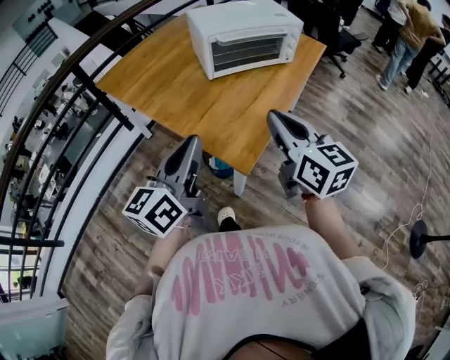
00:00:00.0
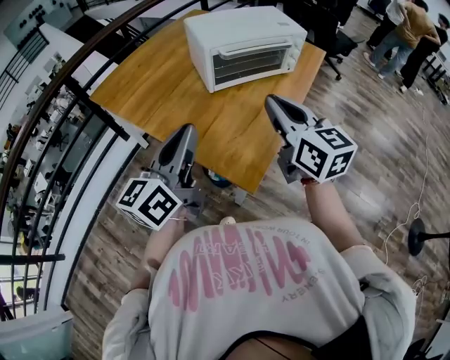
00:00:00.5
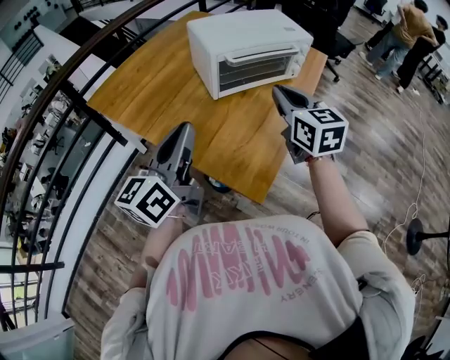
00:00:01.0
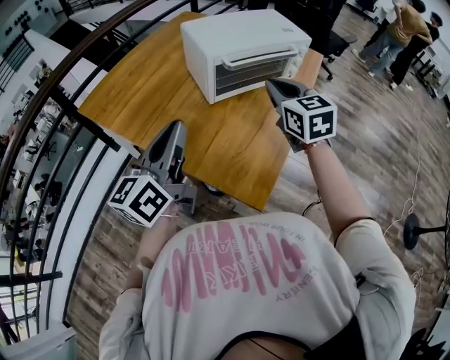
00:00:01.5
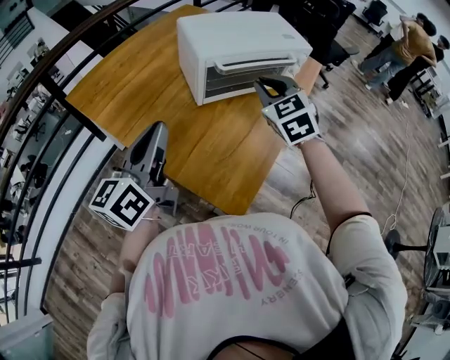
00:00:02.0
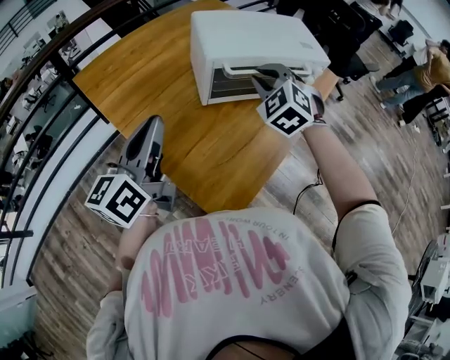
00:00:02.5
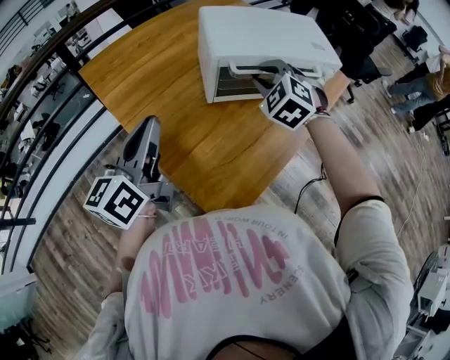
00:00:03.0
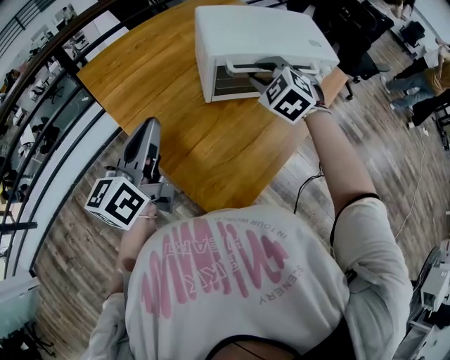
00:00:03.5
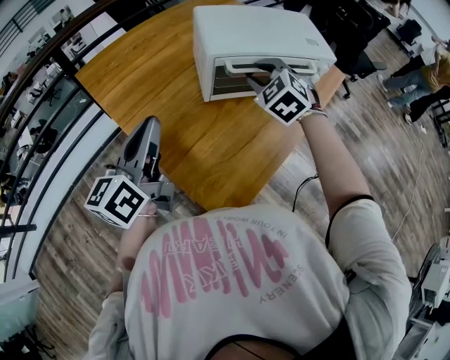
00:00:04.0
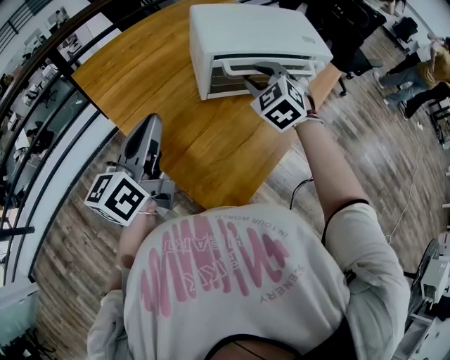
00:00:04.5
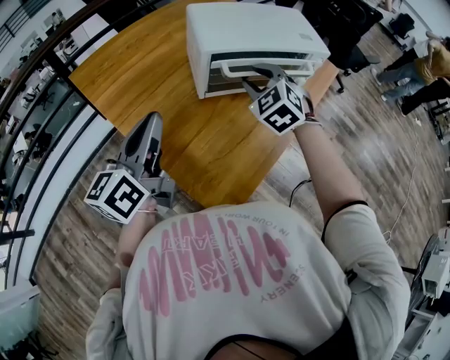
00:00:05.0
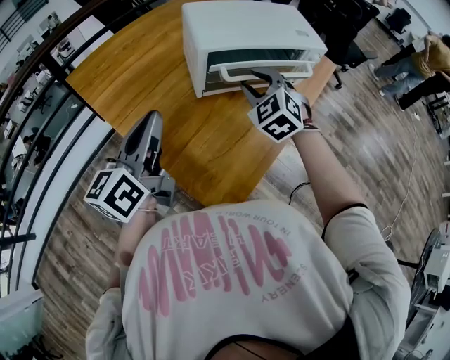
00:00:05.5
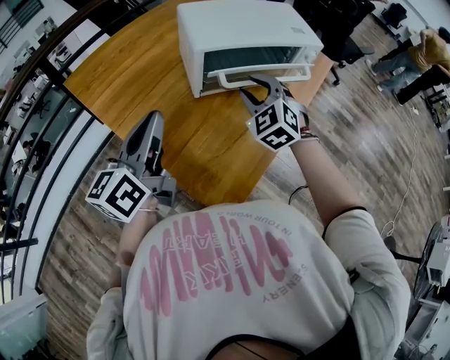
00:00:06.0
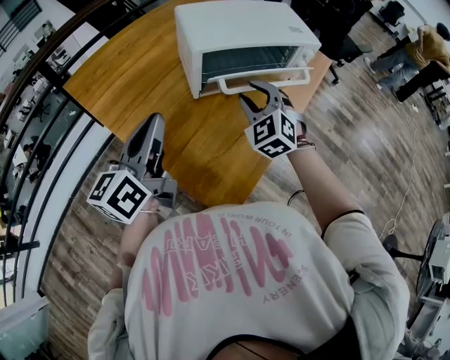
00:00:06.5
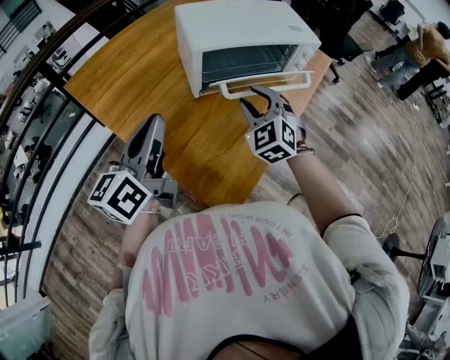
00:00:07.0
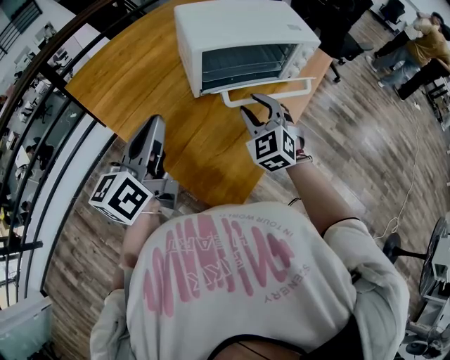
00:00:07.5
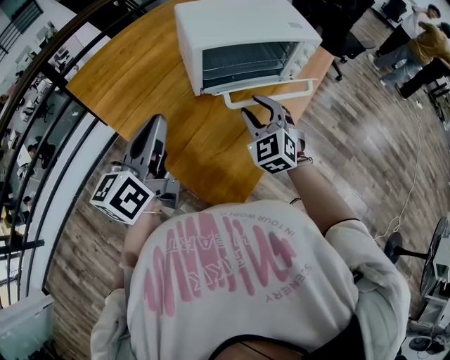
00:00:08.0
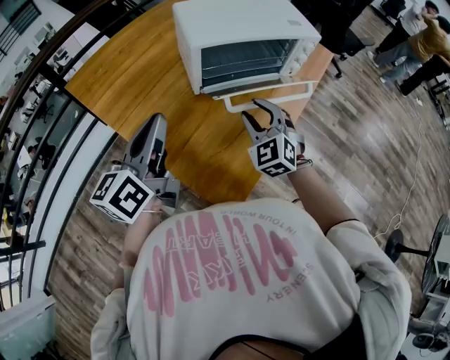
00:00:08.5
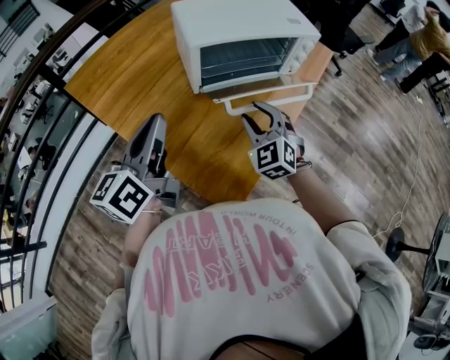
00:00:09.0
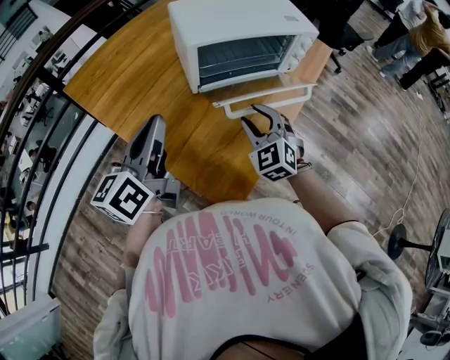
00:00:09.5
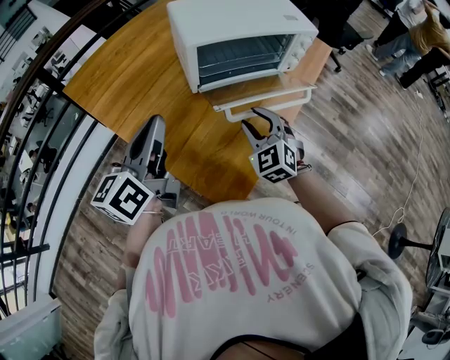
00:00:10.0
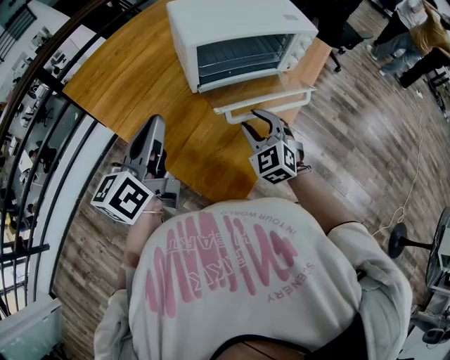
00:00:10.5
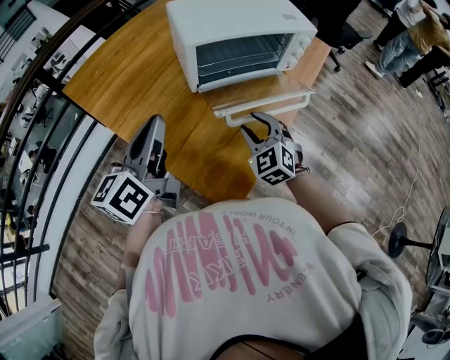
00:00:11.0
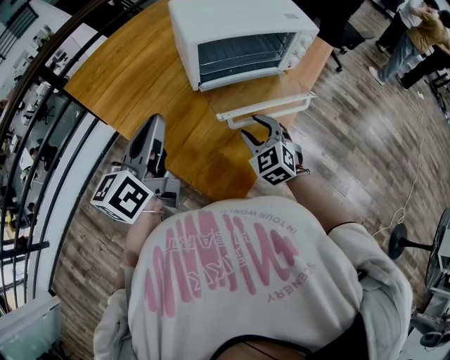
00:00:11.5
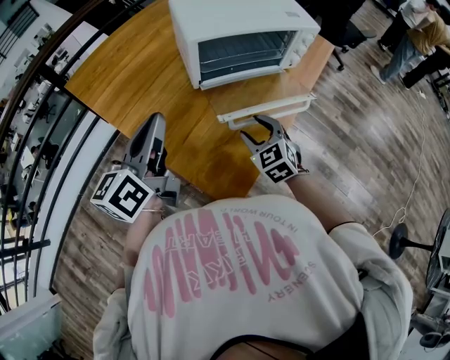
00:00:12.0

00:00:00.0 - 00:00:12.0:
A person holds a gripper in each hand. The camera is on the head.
00:00:00.0 - 00:00:02.0: The left gripper travels forward and to the left by roughly 20 cm; the right gripper heads forward, covering some 25 cm, and twists some 40 degrees counterclockwise, seen from behind.
00:00:02.0 - 00:00:04.0: The right gripper travels forward by approximately 10 cm, and rotates some 20 degrees.
00:00:04.0 - 00:00:06.0: The right gripper heads backward, covering roughly 5 cm.
00:00:06.0 - 00:00:08.0: The right gripper shifts by some 5 cm.
00:00:08.0 - 00:00:10.0: The right gripper shifts by some 5 cm.
00:00:10.0 - 00:00:12.0: The right gripper moves some 5 cm.

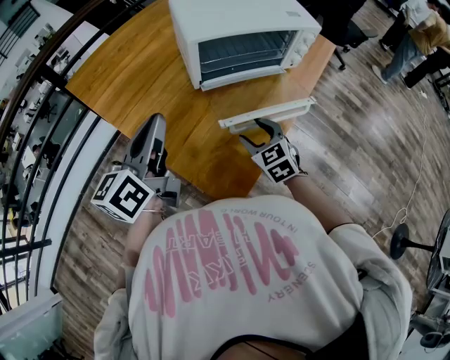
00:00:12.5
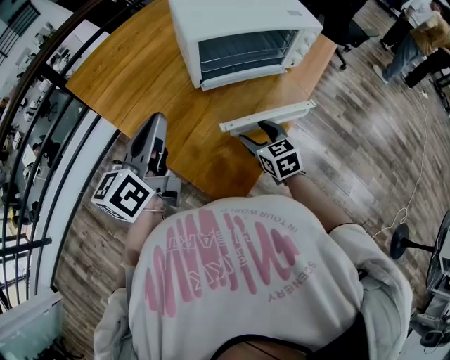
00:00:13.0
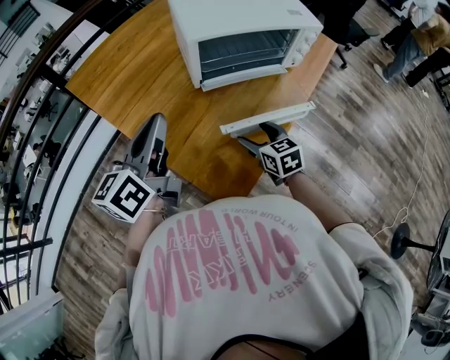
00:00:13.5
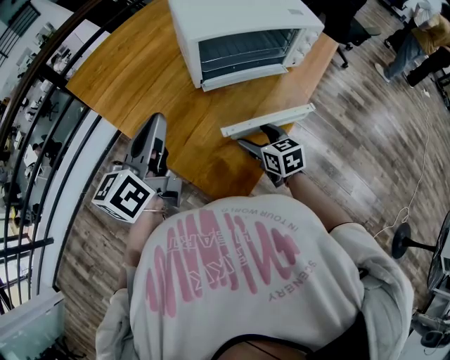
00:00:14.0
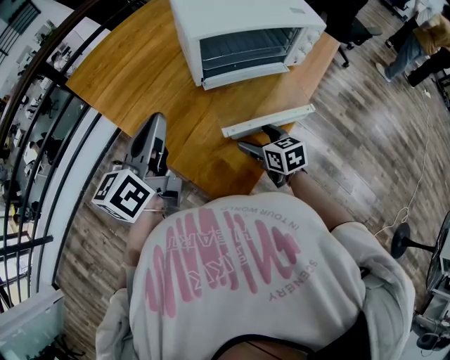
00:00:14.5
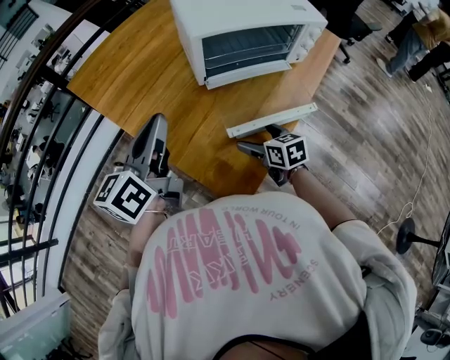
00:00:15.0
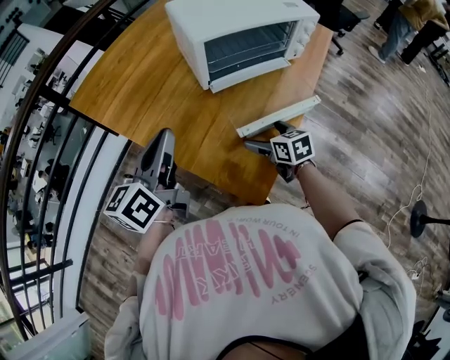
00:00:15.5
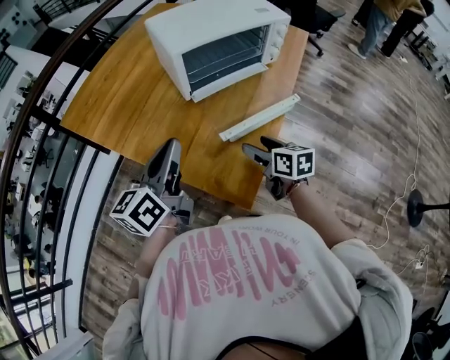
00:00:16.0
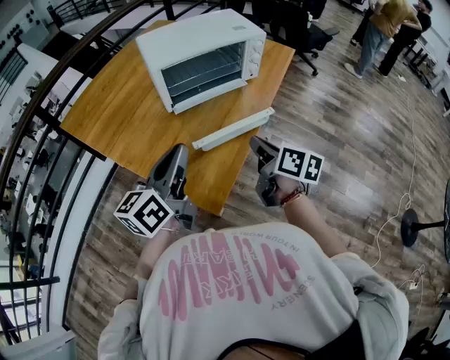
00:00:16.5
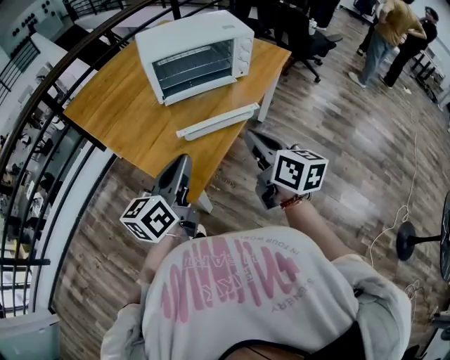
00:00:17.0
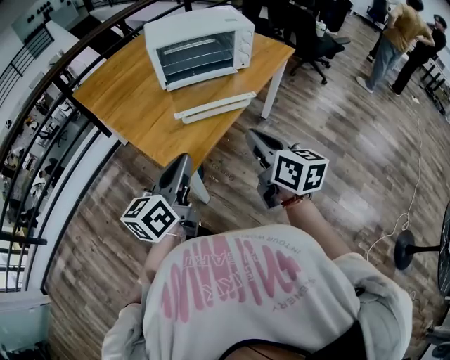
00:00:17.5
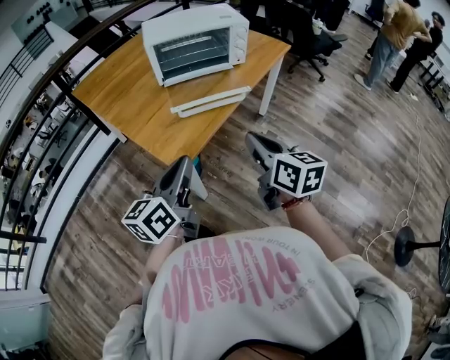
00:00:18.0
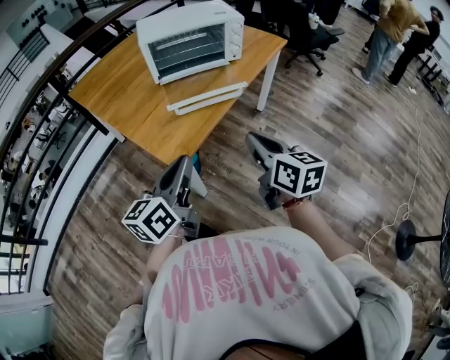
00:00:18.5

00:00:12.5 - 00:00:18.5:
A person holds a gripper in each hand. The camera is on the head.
00:00:12.5 - 00:00:14.5: The right gripper turns by some 30 degrees.
00:00:14.5 - 00:00:16.5: The left gripper heads to the right and backward, covering some 15 cm; the right gripper goes approximately 15 cm upward, to the right and backward, rotates approximately 40 degrees, and closes.
00:00:16.5 - 00:00:18.5: Both grippers move backward and to the right, approximately 20 cm. The right gripper swivels roughly 30 degrees.

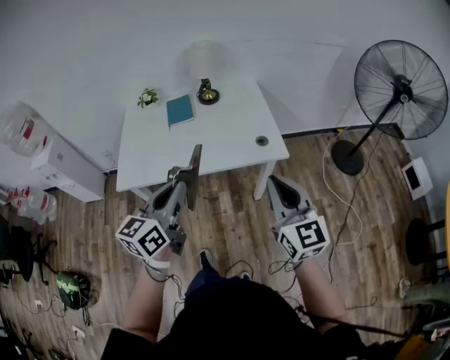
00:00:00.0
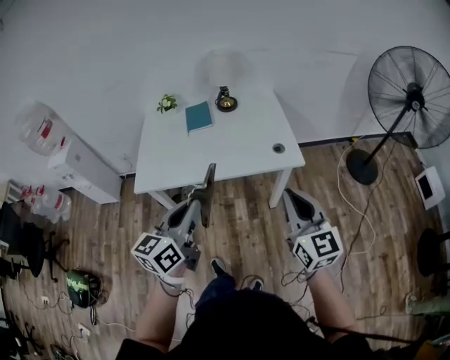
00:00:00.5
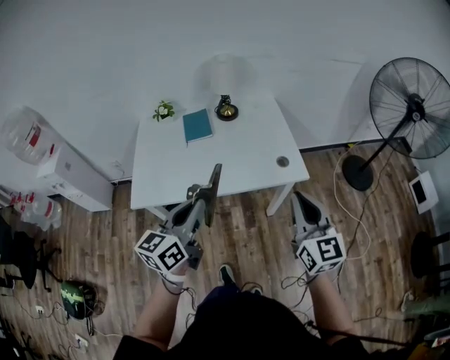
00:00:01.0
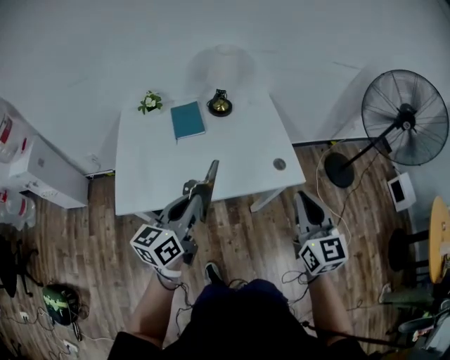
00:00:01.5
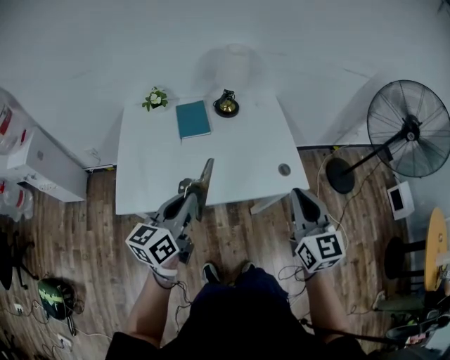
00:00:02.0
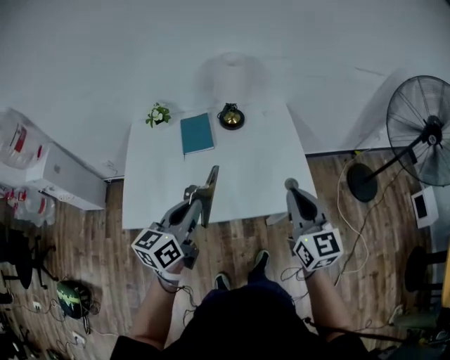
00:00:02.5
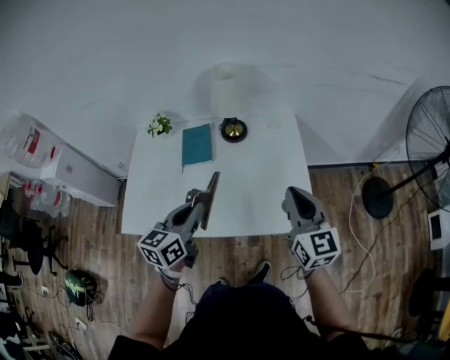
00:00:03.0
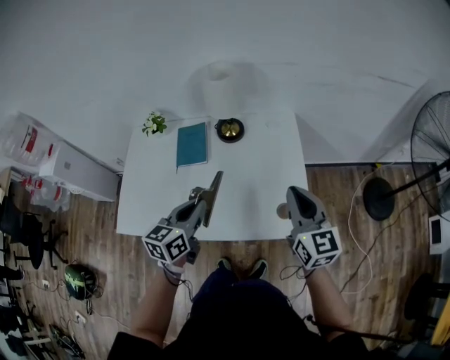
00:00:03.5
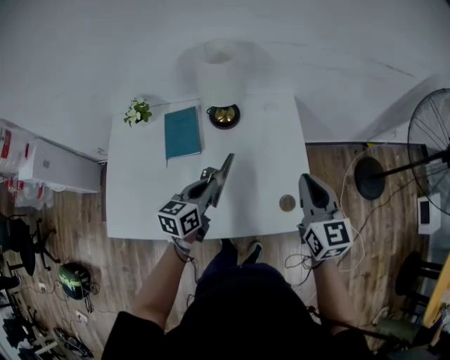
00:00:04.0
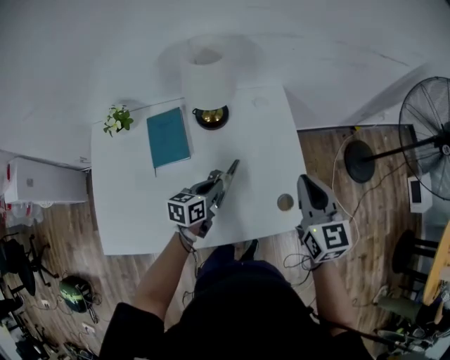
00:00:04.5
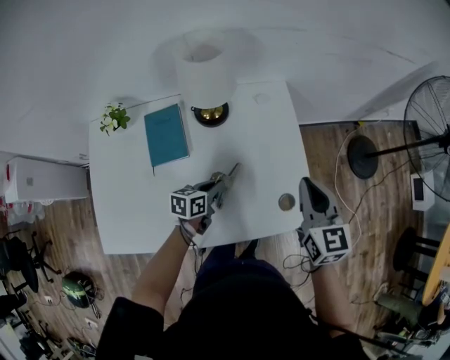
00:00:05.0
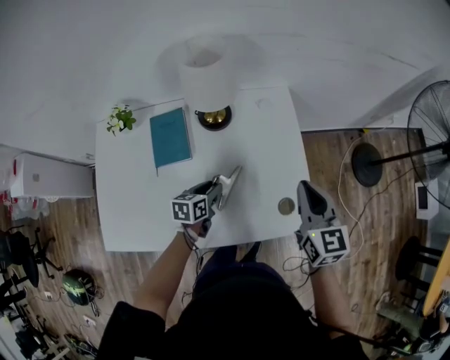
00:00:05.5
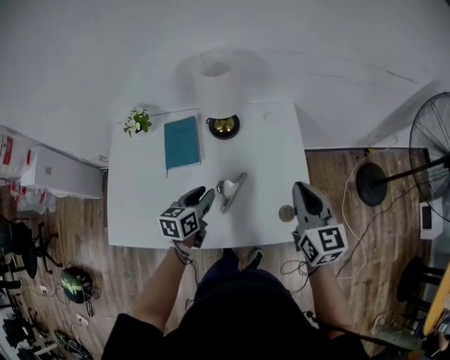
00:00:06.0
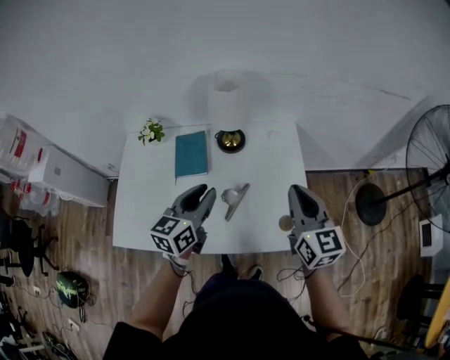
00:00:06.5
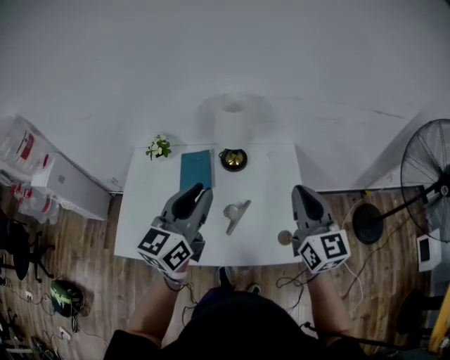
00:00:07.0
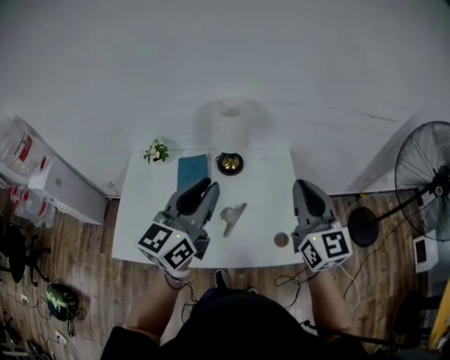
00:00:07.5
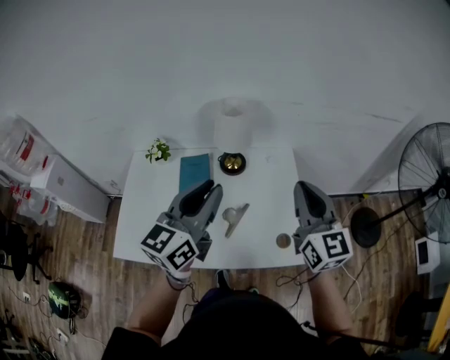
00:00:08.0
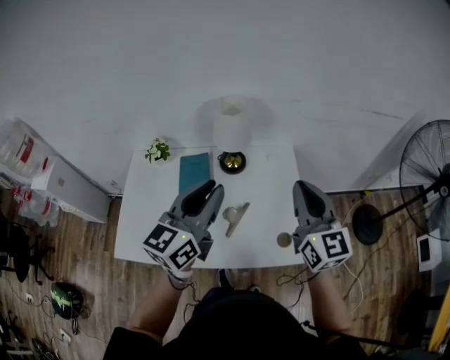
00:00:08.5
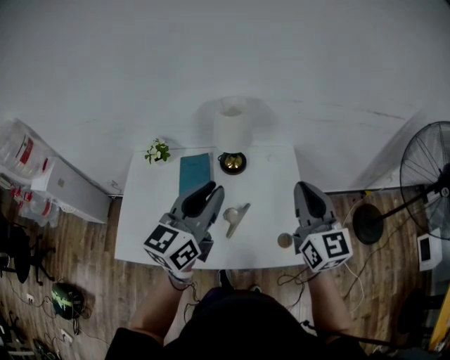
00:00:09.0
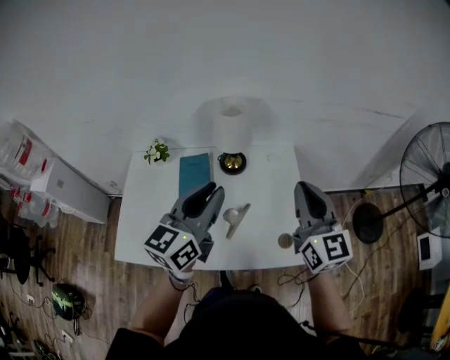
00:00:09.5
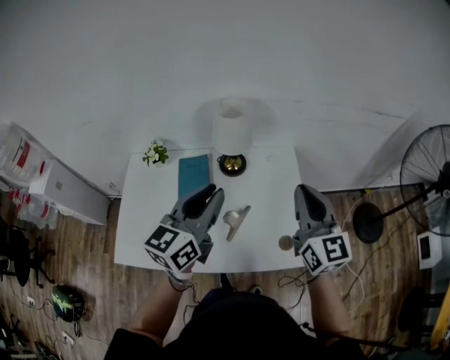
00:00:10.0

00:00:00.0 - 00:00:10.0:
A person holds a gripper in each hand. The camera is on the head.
00:00:00.0 - 00:00:02.0: The right gripper moves forward and to the left, some 20 cm. Meanwhile the left gripper moves to the left, forward and downward, some 25 cm.
00:00:02.0 - 00:00:04.0: The left gripper shifts some 35 cm forward, to the right and downward, while the right gripper goes roughly 30 cm forward.
00:00:04.0 - 00:00:06.0: The left gripper travels downward and back again, some 15 cm each way, and opens up.
00:00:06.0 - 00:00:08.0: The left gripper heads upward, covering roughly 35 cm, and tips its fingers upward by about 30 degrees. Meanwhile the right gripper is displaced upward by roughly 15 cm.
00:00:08.0 - 00:00:10.0: The left gripper shifts by roughly 5 cm.
